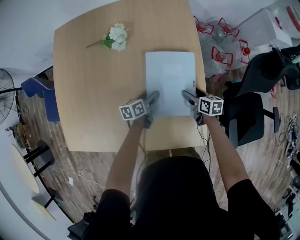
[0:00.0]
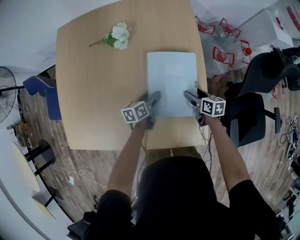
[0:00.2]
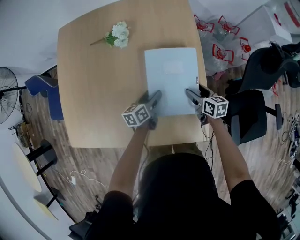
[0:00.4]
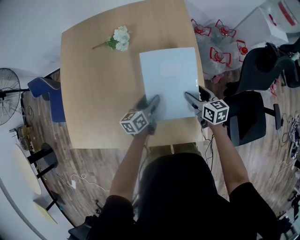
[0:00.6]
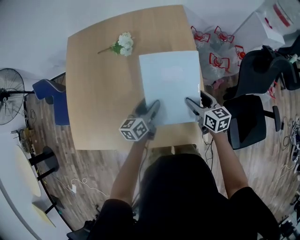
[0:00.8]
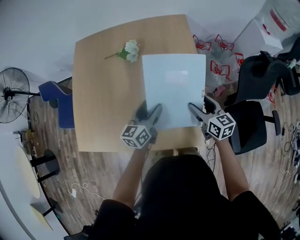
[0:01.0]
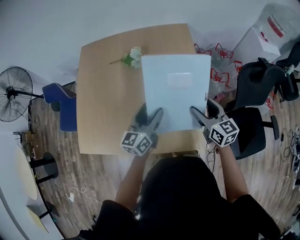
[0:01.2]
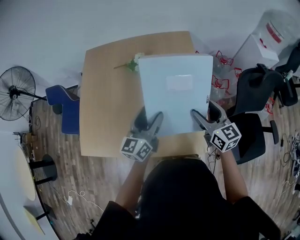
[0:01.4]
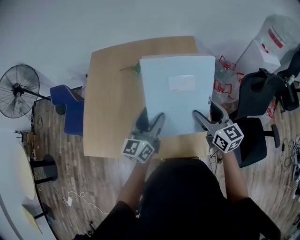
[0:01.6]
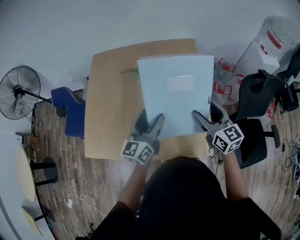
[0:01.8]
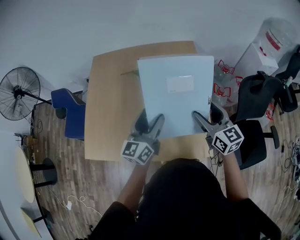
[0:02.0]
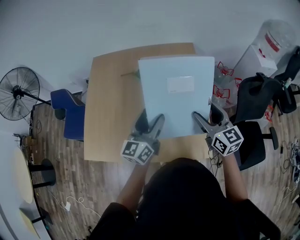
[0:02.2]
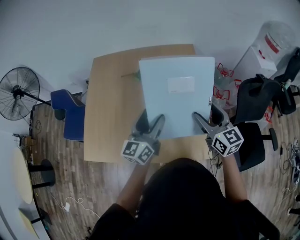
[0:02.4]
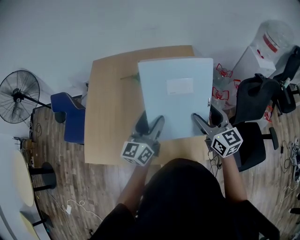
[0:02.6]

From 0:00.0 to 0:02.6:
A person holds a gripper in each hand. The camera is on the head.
From 0:00.0 to 0:01.2: Both grippers move upward, roughly 30 cm. The right gripper changes its angle by some 40 degrees, while the left gripper turns by roughly 40 degrees.
From 0:01.2 to 0:02.6: Both grippers move upward and to the left, approximately 10 cm.

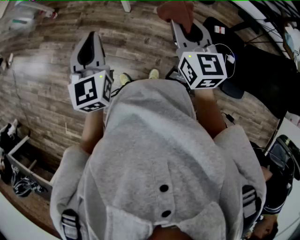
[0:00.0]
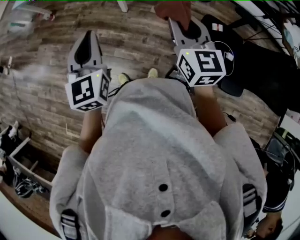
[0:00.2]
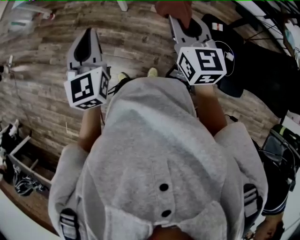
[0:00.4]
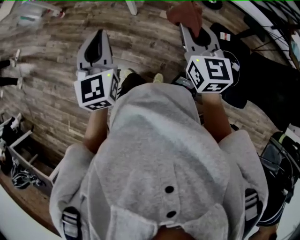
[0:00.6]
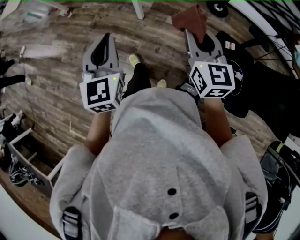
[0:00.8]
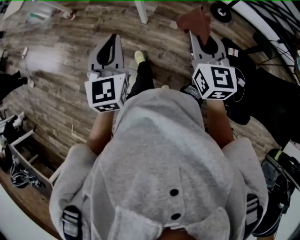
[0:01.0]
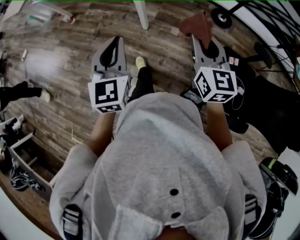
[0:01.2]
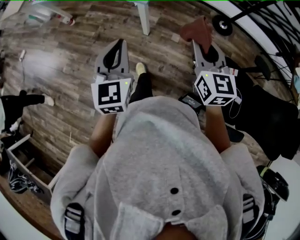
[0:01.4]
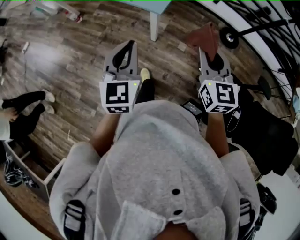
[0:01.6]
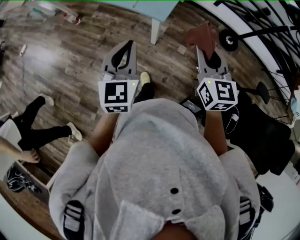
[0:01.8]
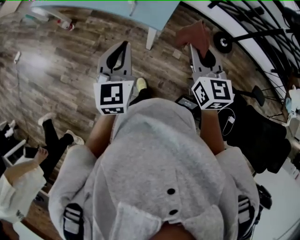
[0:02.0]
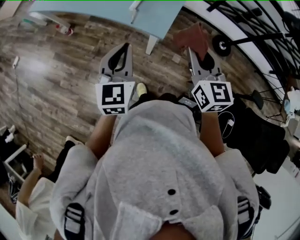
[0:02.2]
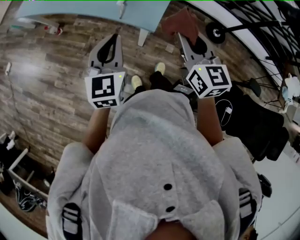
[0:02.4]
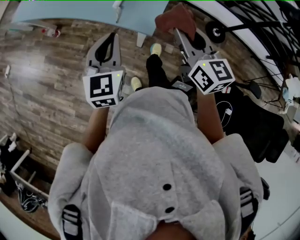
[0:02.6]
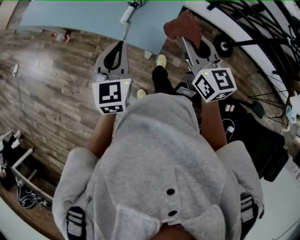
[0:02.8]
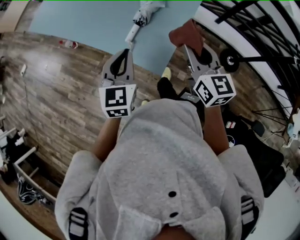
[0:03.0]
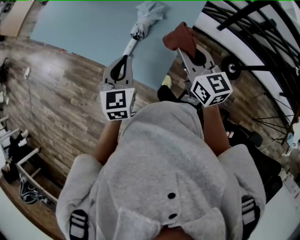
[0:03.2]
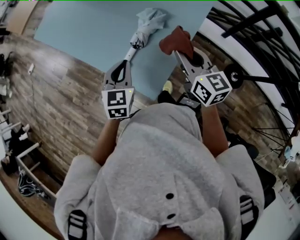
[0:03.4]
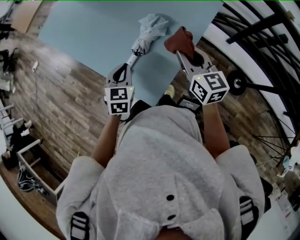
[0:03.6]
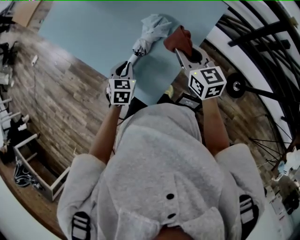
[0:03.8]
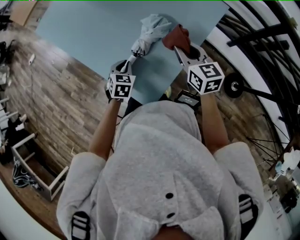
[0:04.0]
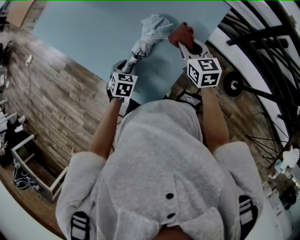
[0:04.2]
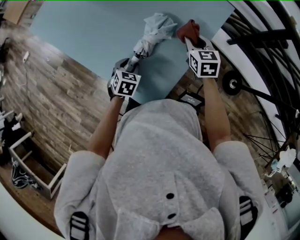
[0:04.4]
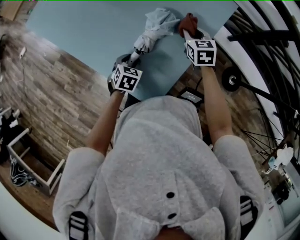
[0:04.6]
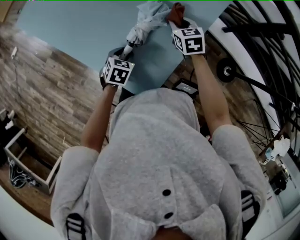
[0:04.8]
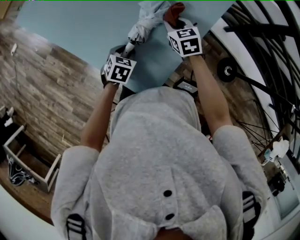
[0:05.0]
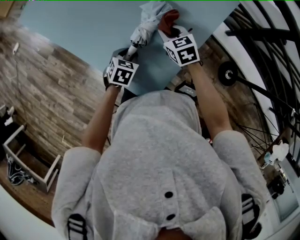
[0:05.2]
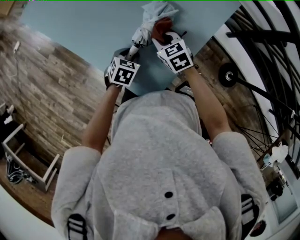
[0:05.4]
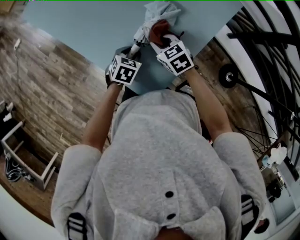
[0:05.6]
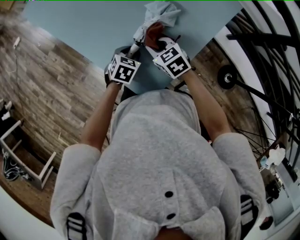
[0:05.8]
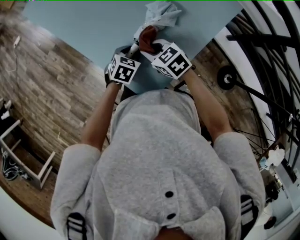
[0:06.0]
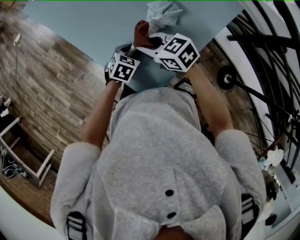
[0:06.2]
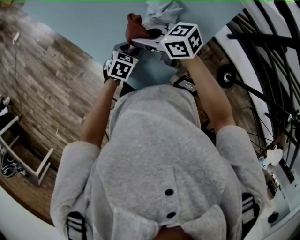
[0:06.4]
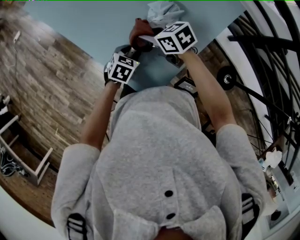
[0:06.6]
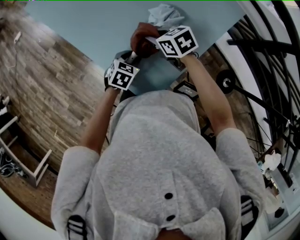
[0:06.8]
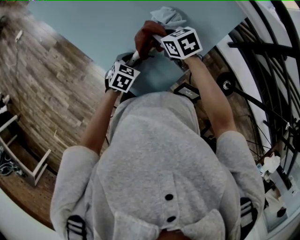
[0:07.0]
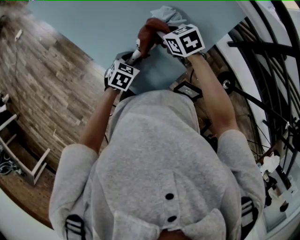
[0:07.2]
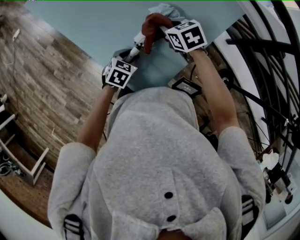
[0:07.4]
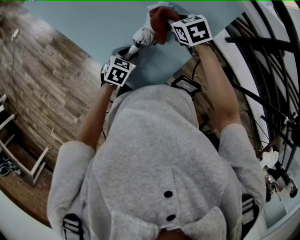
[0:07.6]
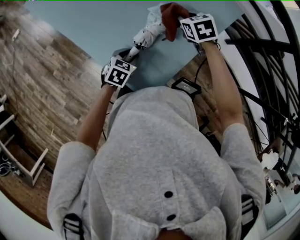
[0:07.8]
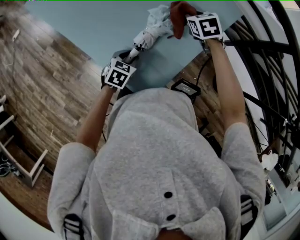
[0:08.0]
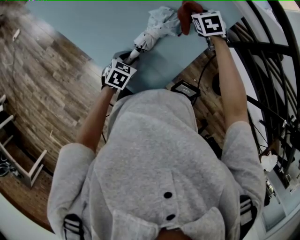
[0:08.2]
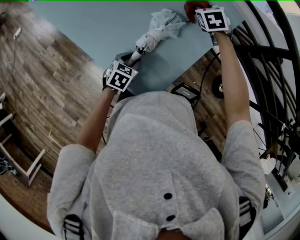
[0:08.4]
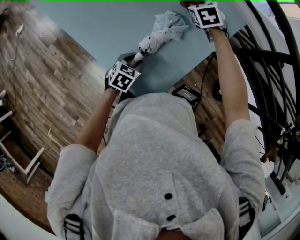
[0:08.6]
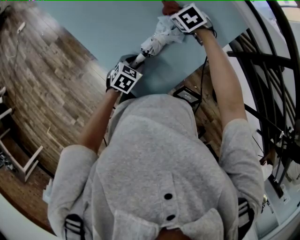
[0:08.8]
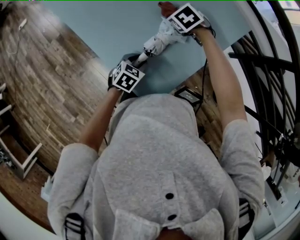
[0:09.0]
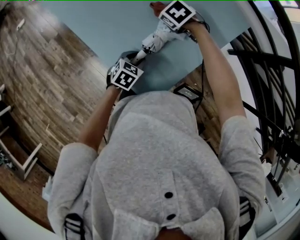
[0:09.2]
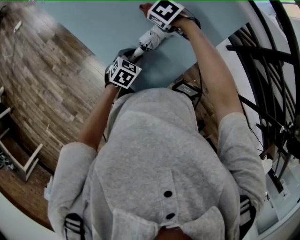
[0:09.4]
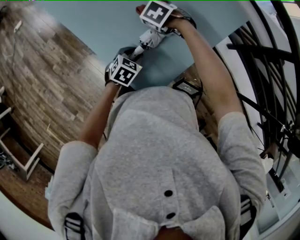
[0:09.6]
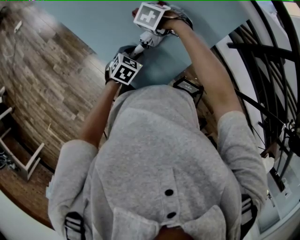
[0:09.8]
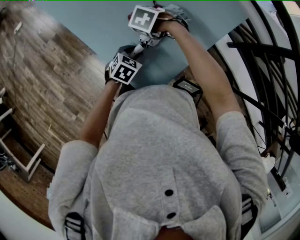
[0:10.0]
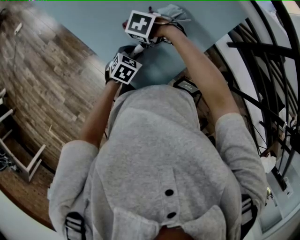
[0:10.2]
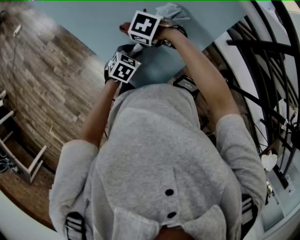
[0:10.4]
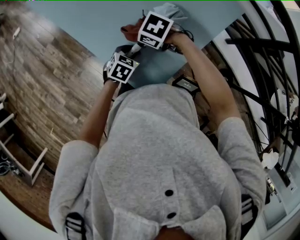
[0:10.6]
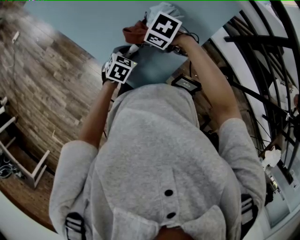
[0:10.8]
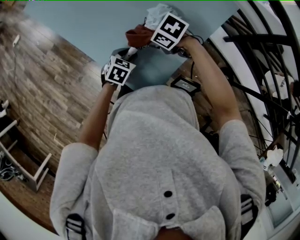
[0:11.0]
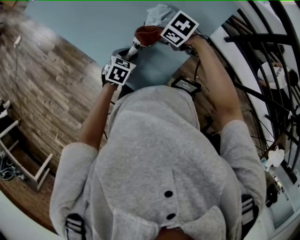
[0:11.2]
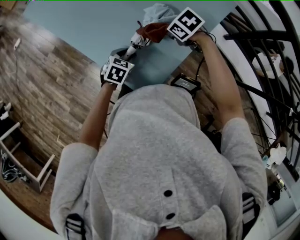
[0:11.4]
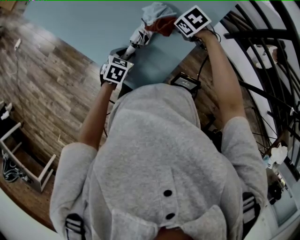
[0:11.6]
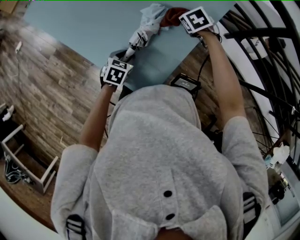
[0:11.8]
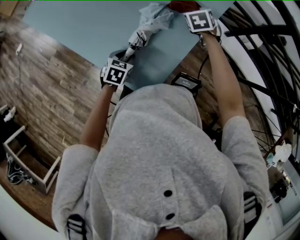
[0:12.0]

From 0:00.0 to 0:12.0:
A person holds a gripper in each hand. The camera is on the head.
From 0:00.0 to 0:01.6: Both grippers move forward, approximately 25 cm.
From 0:01.6 to 0:03.0: Both grippers travel together forward, approximately 35 cm.
From 0:03.0 to 0:04.4: The right gripper goes approximately 30 cm forward and downward, and changes its angle by about 20 degrees; the left gripper moves downward and forward, about 30 cm, points its fingers approximately 40 degrees further downward, and opens.
From 0:04.4 to 0:06.0: The right gripper travels to the left and backward by roughly 20 cm, and changes its angle by about 50 degrees.
From 0:06.0 to 0:07.6: The right gripper travels to the right and forward by some 15 cm, and swivels roughly 20 degrees.
From 0:07.6 to 0:09.0: The right gripper shifts roughly 5 cm to the left, and changes its angle by approximately 30 degrees.
From 0:09.0 to 0:10.4: The right gripper moves roughly 20 cm, and changes its angle by about 30 degrees.
From 0:10.4 to 0:12.0: The right gripper changes place by roughly 30 cm, and swivels some 60 degrees.

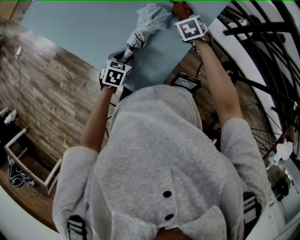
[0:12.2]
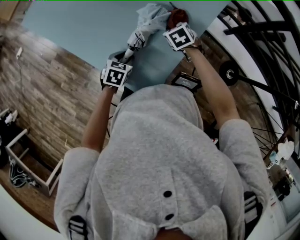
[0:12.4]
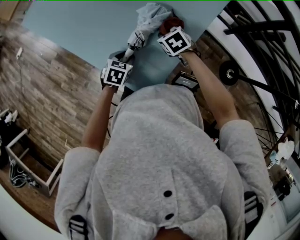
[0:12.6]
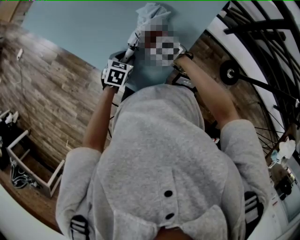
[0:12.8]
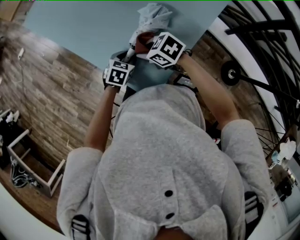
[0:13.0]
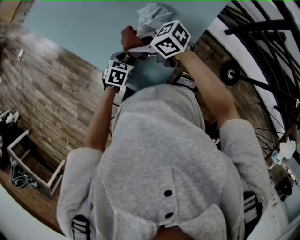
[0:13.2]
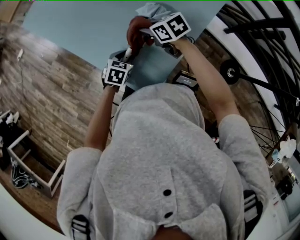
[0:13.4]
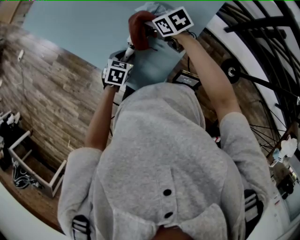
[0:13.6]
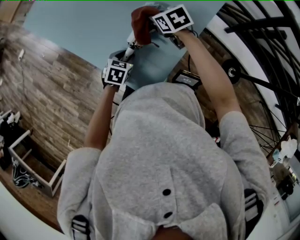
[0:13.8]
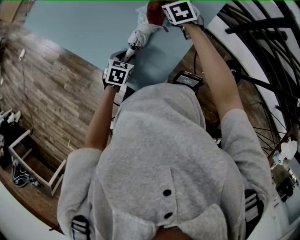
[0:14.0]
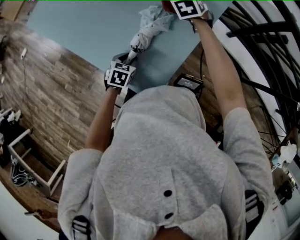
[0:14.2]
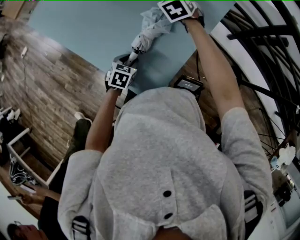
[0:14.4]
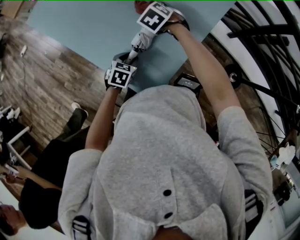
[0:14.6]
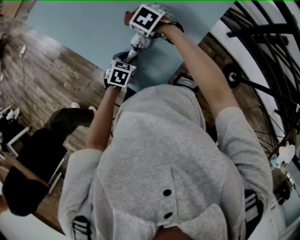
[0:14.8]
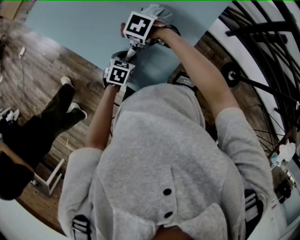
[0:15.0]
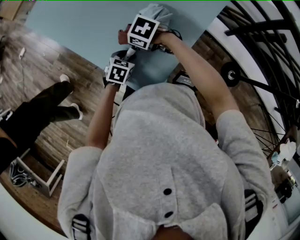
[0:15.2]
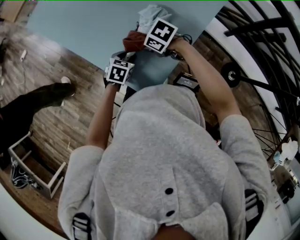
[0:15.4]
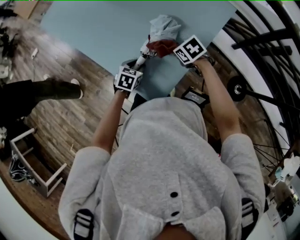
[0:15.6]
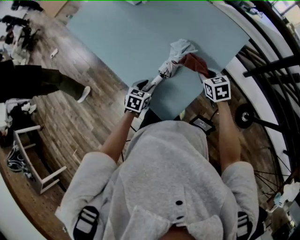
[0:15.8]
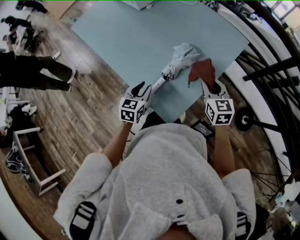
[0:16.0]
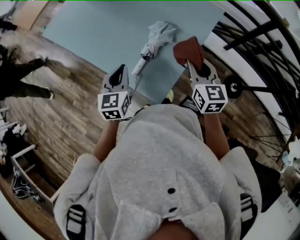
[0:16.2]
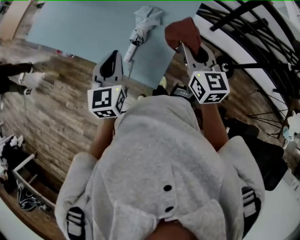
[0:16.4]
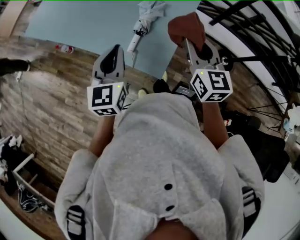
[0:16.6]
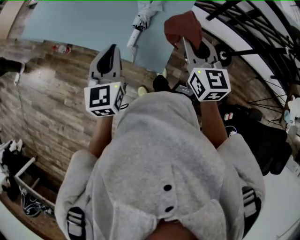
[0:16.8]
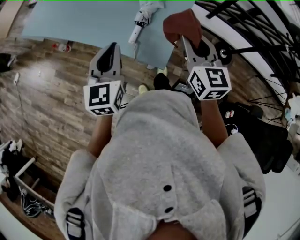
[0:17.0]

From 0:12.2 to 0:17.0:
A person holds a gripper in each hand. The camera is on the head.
From 0:12.2 to 0:13.8: The right gripper rotates roughly 30 degrees.
From 0:13.8 to 0:15.4: The right gripper moves about 15 cm, and changes its angle by some 30 degrees.
From 0:15.4 to 0:17.0: The grippers both shift upward by approximately 25 cm. The right gripper tilts its fingers about 40 degrees upward. Meanwhile the left gripper points its fingers about 40 degrees further upward, and closes its fingers.

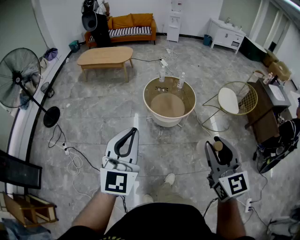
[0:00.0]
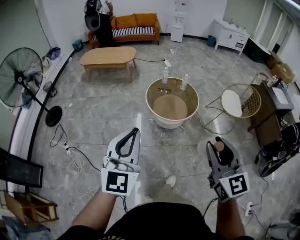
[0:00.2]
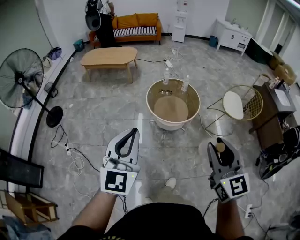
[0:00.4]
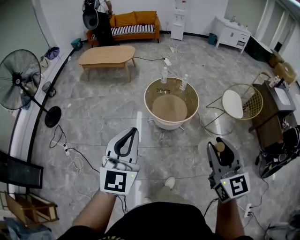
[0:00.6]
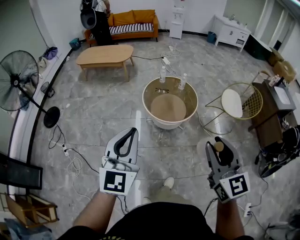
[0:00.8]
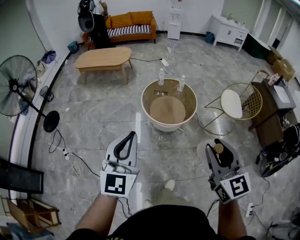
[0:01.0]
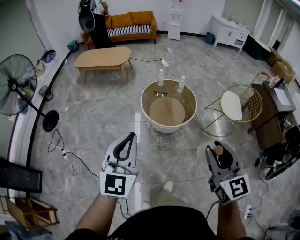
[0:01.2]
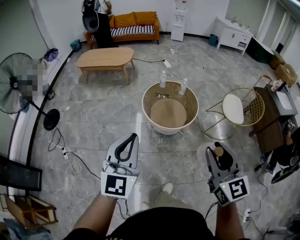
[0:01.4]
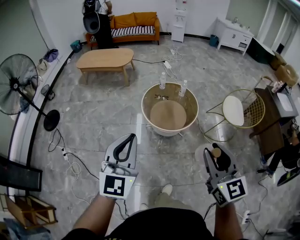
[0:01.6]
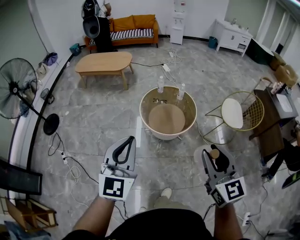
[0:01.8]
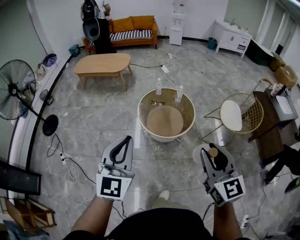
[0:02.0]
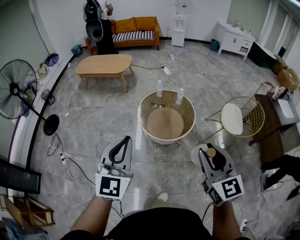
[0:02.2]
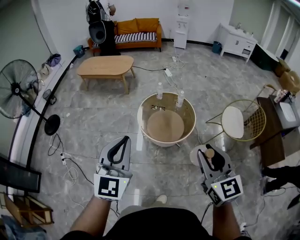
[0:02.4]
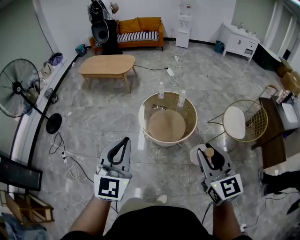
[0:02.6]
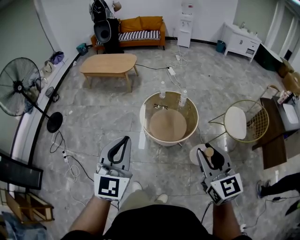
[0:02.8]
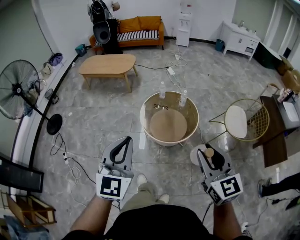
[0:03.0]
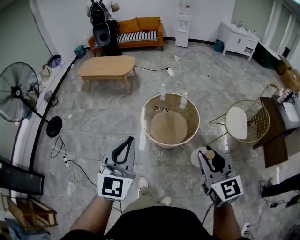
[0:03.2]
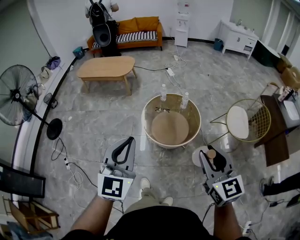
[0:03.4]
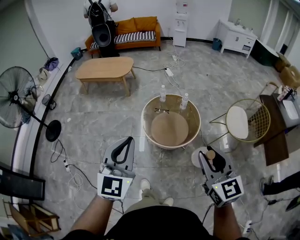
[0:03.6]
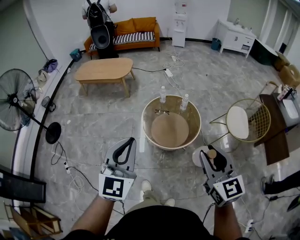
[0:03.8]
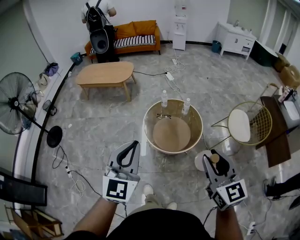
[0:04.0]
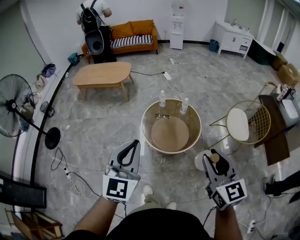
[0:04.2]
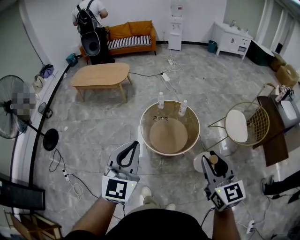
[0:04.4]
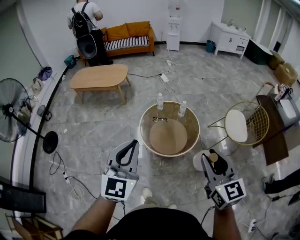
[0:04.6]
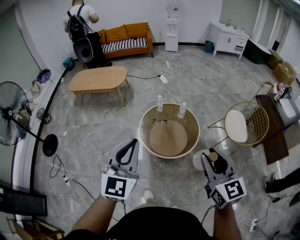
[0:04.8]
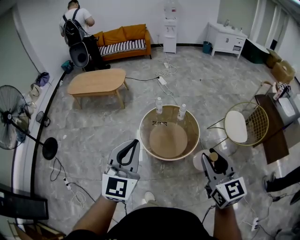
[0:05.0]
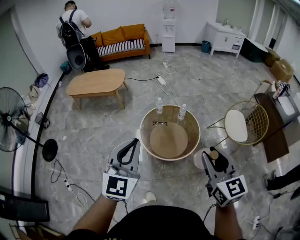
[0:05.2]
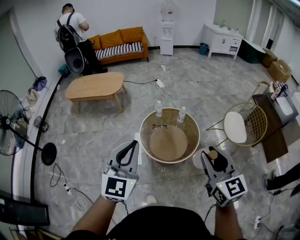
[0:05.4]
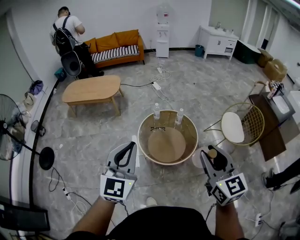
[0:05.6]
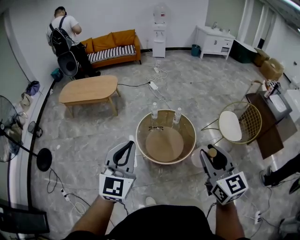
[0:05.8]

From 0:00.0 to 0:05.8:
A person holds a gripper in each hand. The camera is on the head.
From 0:00.0 to 0:01.4: Both grippers move forward and to the right, some 15 cm.
From 0:01.4 to 0:02.8: The grippers both shift forward and to the right by about 10 cm.
From 0:02.8 to 0:04.4: The left gripper moves forward, some 10 cm; the right gripper is displaced forward by some 5 cm.
From 0:04.4 to 0:05.8: The grippers both shift to the left and forward by about 10 cm.
